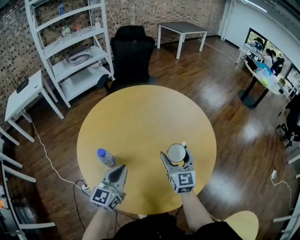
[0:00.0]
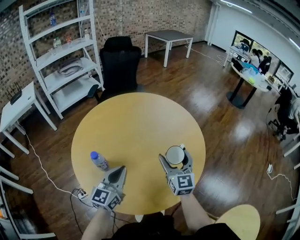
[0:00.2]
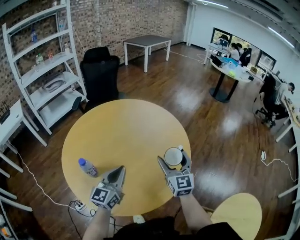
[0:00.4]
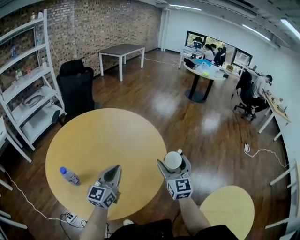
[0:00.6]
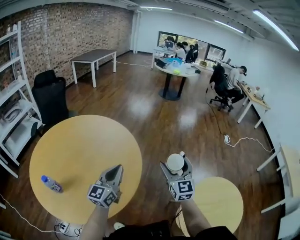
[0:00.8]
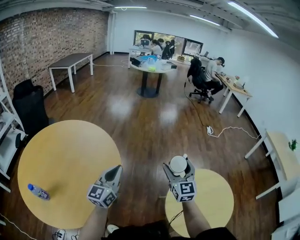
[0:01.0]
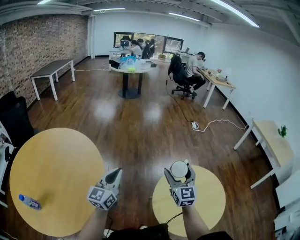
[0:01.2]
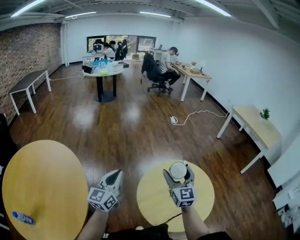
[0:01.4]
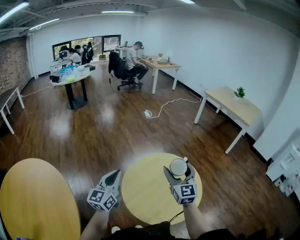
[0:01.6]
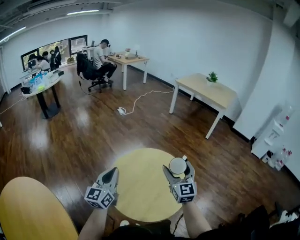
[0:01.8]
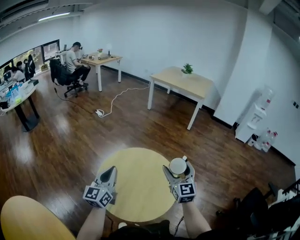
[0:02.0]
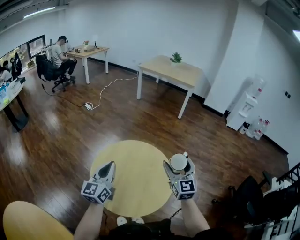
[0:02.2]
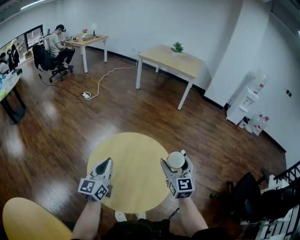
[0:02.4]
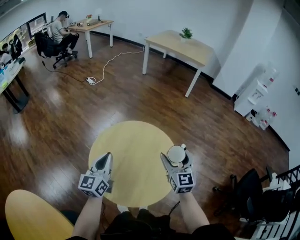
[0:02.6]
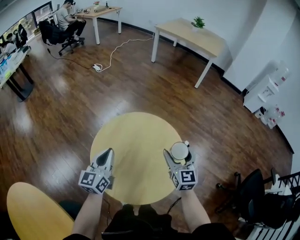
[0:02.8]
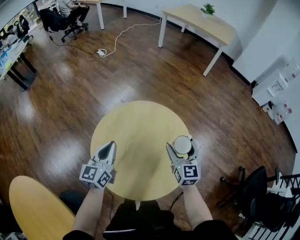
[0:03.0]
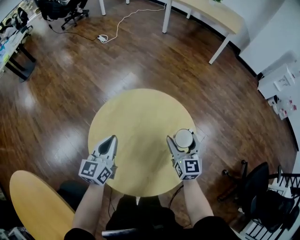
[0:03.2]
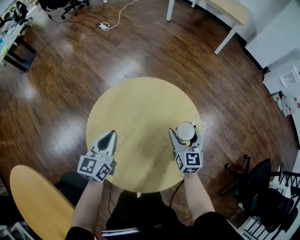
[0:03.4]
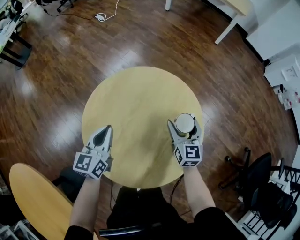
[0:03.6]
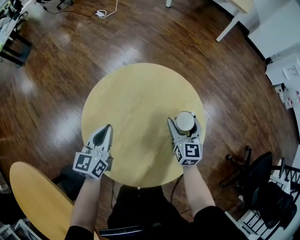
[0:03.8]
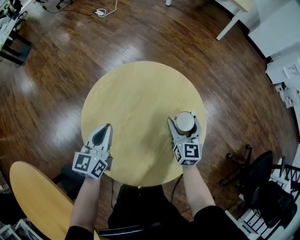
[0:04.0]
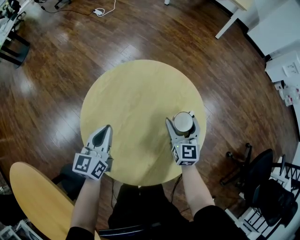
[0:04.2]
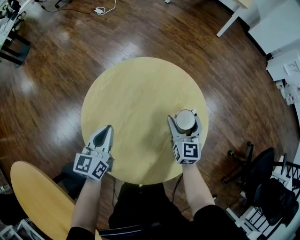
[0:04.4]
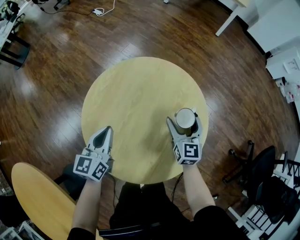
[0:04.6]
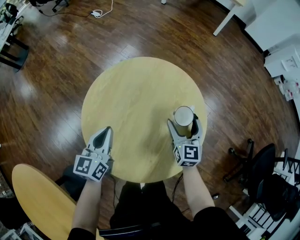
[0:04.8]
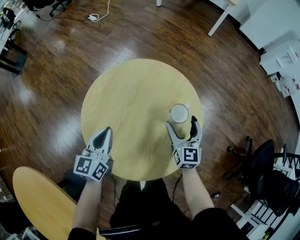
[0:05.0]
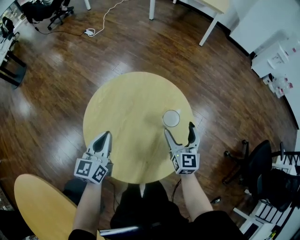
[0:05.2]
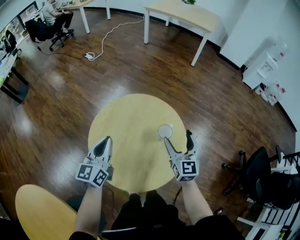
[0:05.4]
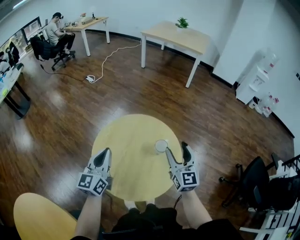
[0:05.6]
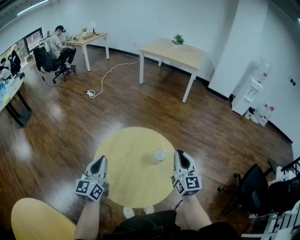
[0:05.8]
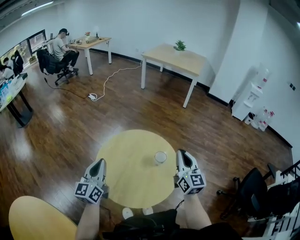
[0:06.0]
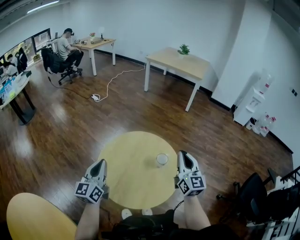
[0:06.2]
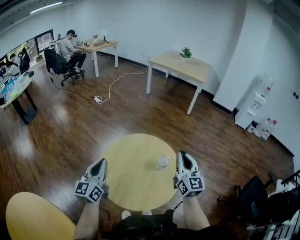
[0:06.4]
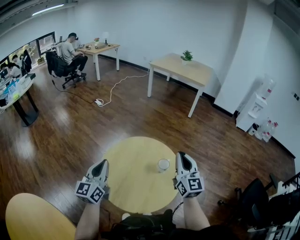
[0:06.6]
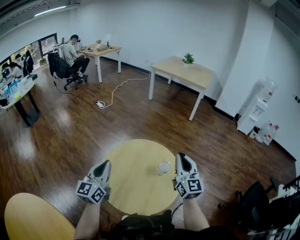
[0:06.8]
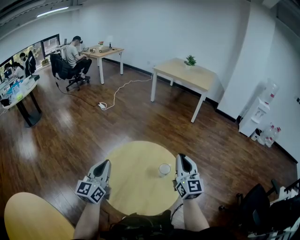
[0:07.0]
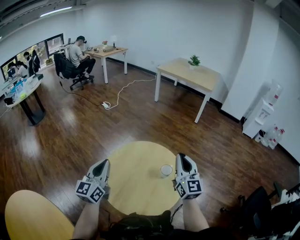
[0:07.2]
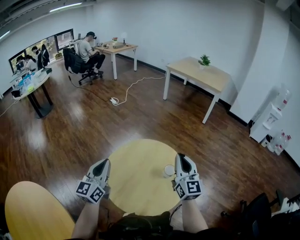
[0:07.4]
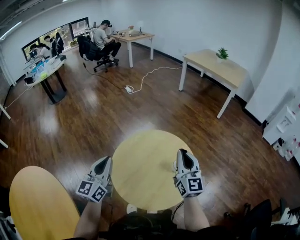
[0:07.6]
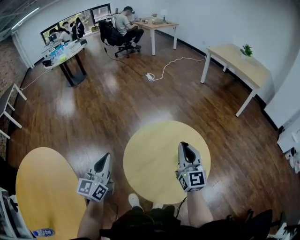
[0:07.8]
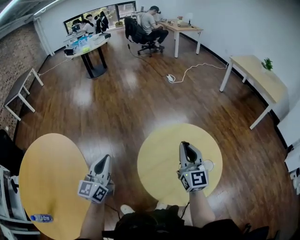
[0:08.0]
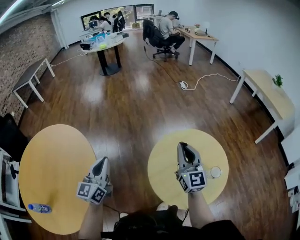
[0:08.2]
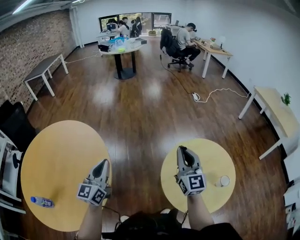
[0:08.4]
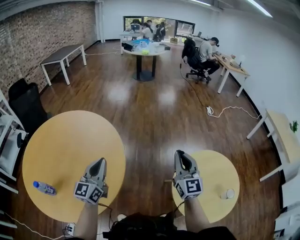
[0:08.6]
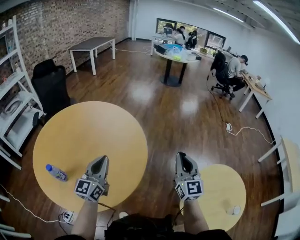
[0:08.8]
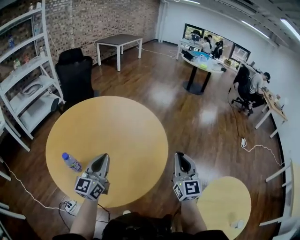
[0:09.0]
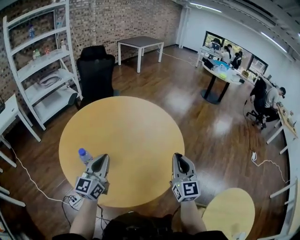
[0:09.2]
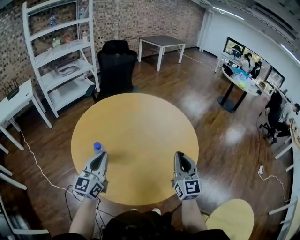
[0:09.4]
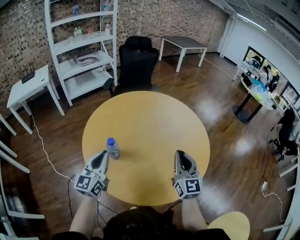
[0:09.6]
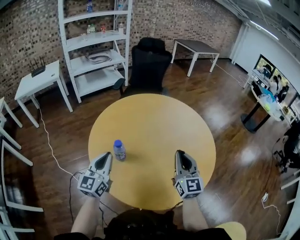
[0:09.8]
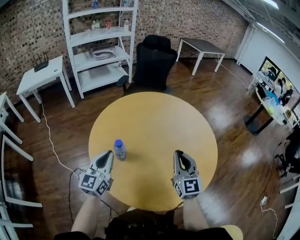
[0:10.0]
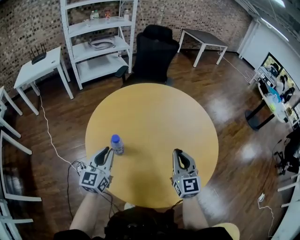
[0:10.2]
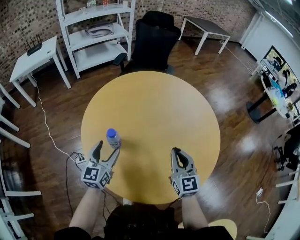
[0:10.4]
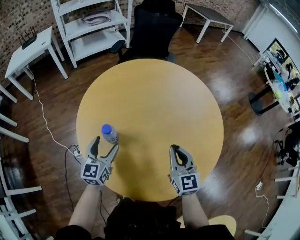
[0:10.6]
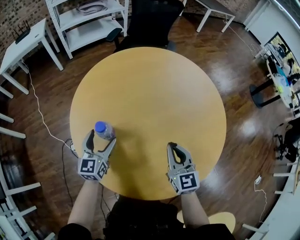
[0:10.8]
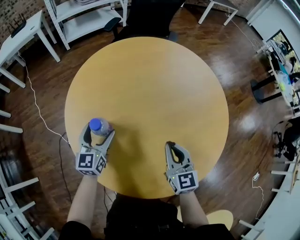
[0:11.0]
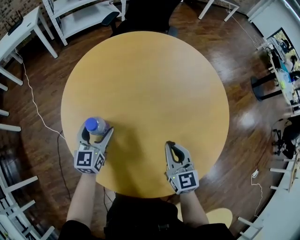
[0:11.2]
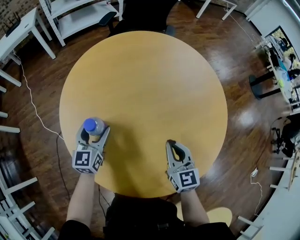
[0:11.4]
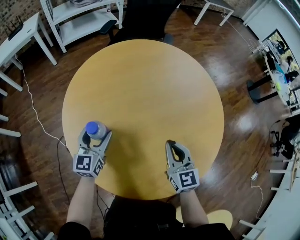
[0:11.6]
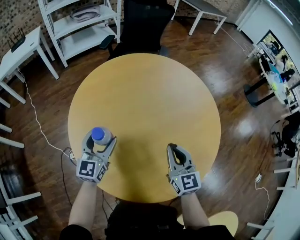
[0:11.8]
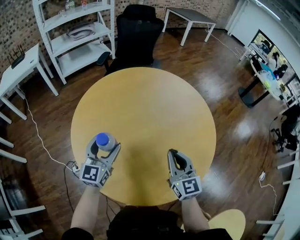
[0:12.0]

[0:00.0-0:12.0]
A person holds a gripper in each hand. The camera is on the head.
0:00.0 to 0:01.6: Both grippers are carried about 70 cm. The left gripper changes its angle by some 80 degrees. The right gripper turns by about 80 degrees.
0:01.6 to 0:03.0: The left gripper shifts by roughly 25 cm, and swivels about 30 degrees. The right gripper changes place by approximately 25 cm, and swivels roughly 30 degrees.
0:03.0 to 0:04.4: Both grippers travel together downward, about 10 cm.
0:04.4 to 0:06.0: The grippers both shift upward by approximately 25 cm. The left gripper turns by approximately 20 degrees. Meanwhile the right gripper turns by about 20 degrees, and closes.
0:06.0 to 0:07.6: The right gripper travels to the left by some 10 cm.
0:07.6 to 0:09.0: Both grippers are carried some 60 cm. The right gripper turns by approximately 70 degrees. Meanwhile the left gripper swivels about 70 degrees.
0:09.0 to 0:10.4: The right gripper shifts by roughly 30 cm, and changes its angle by about 40 degrees; the left gripper changes place by about 25 cm, rotates approximately 40 degrees, and opens its fingers.
0:10.4 to 0:12.0: The left gripper travels downward and back again, about 10 cm each way. The right gripper reaches roughly 10 cm downward, then returns.

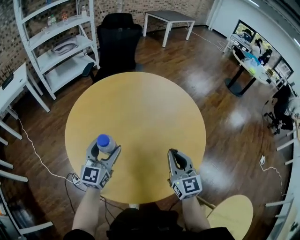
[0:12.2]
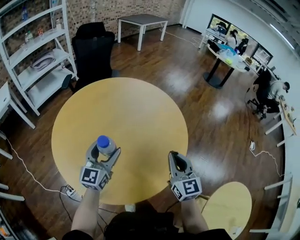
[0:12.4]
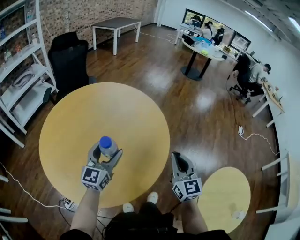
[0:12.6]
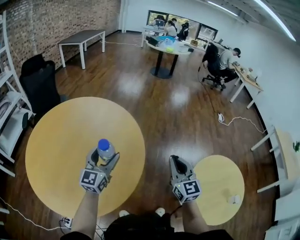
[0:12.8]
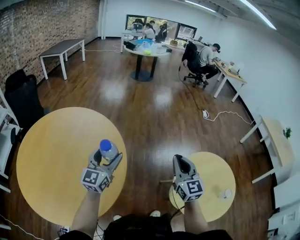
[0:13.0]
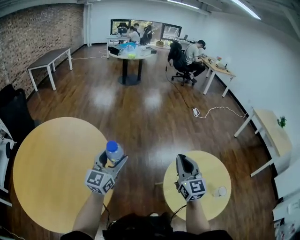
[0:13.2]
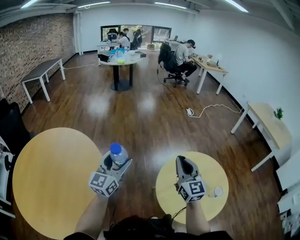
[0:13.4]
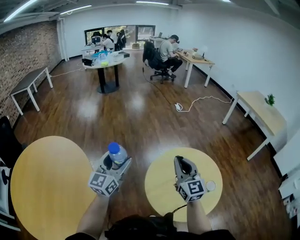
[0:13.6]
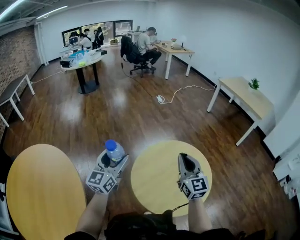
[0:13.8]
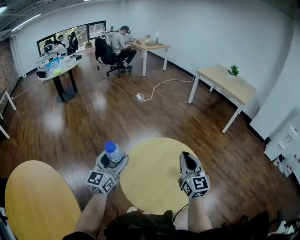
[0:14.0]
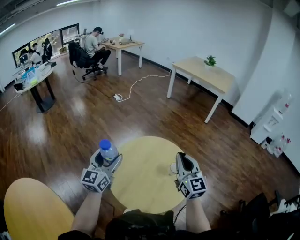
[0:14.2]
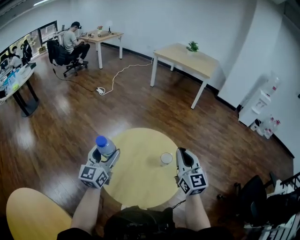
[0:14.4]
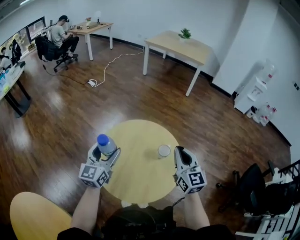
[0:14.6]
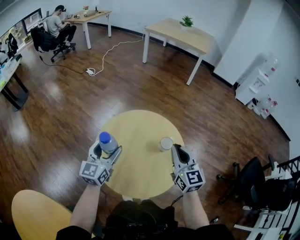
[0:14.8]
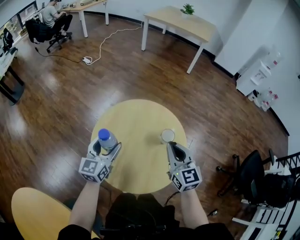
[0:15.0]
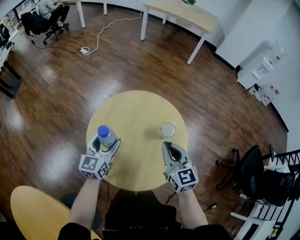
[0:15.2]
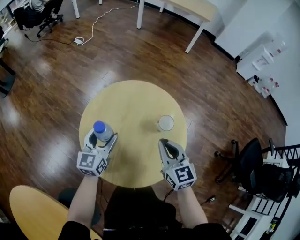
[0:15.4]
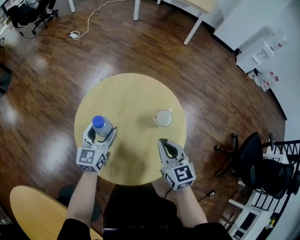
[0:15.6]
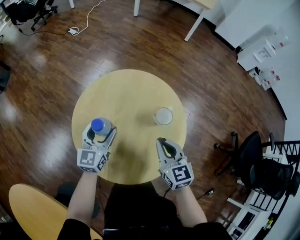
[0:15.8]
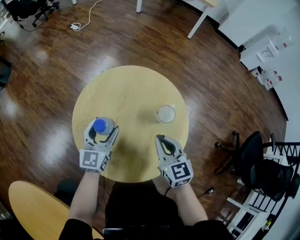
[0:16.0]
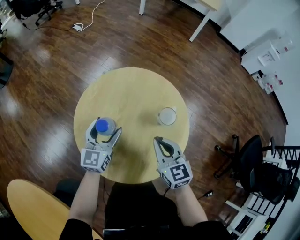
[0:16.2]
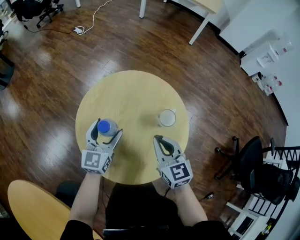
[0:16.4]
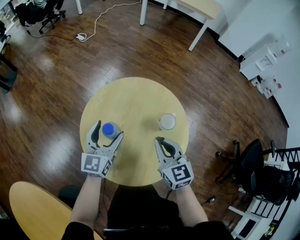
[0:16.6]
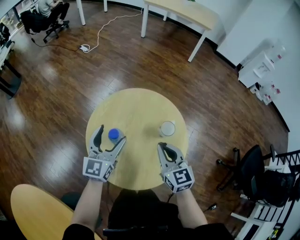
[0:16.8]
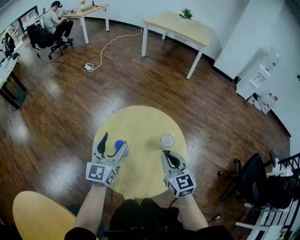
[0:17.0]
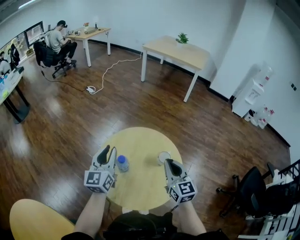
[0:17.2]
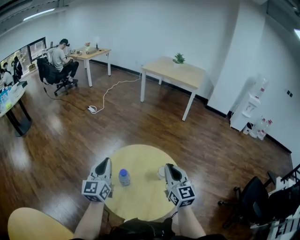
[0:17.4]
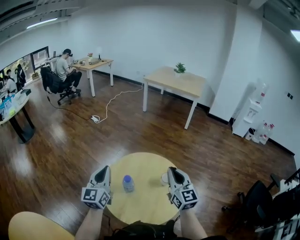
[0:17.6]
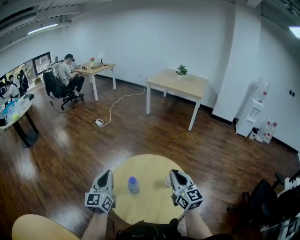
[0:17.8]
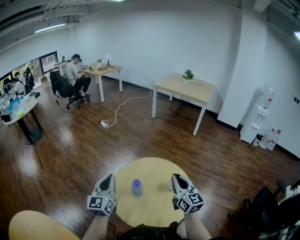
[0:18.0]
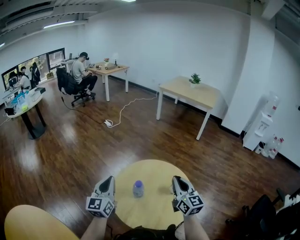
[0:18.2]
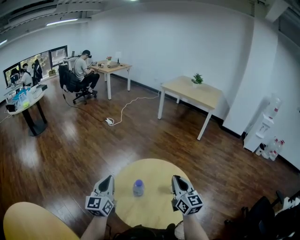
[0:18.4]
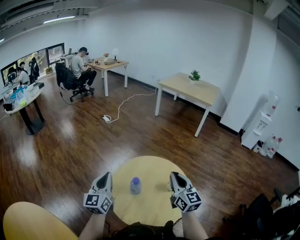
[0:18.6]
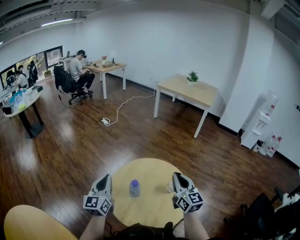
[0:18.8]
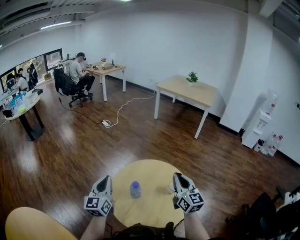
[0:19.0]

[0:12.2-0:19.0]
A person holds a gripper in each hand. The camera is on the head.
0:12.2 to 0:13.6: The two grippers travel together, about 60 cm. The right gripper rotates approximately 60 degrees; the left gripper changes its angle by some 70 degrees.
0:13.6 to 0:15.0: The right gripper changes place by roughly 25 cm, and changes its angle by approximately 50 degrees; the left gripper shifts by roughly 35 cm, and swivels approximately 50 degrees.
0:15.0 to 0:16.2: Both grippers move downward, some 10 cm.
0:16.2 to 0:17.6: The left gripper goes about 25 cm upward and to the left, turns by about 20 degrees, and closes its fingers. The right gripper heads upward, covering some 20 cm, and changes its angle by approximately 30 degrees.
0:17.6 to 0:19.0: The grippers make only small movements.

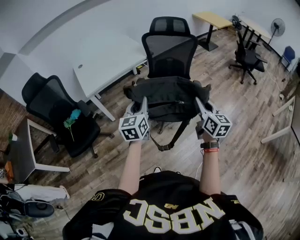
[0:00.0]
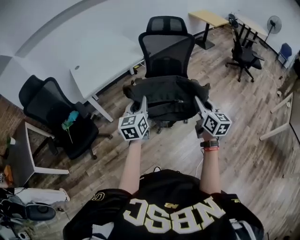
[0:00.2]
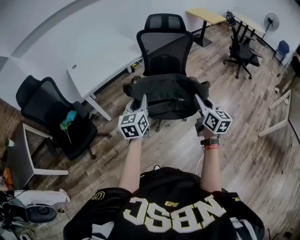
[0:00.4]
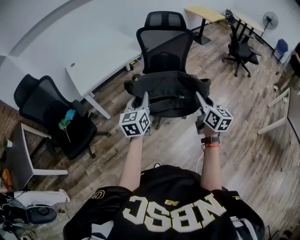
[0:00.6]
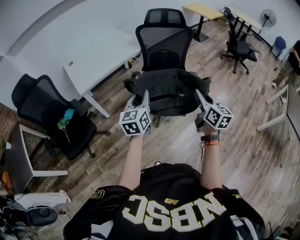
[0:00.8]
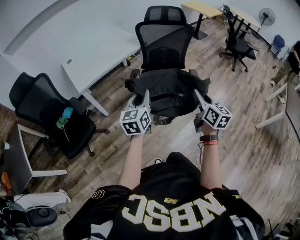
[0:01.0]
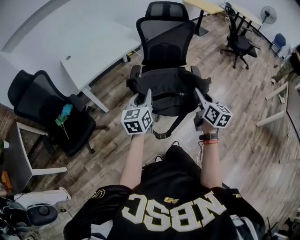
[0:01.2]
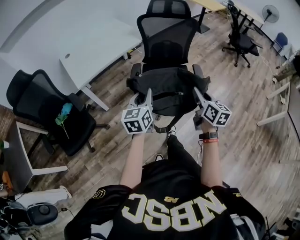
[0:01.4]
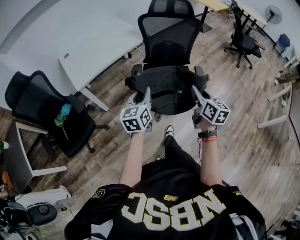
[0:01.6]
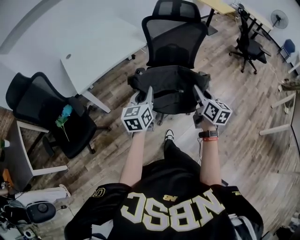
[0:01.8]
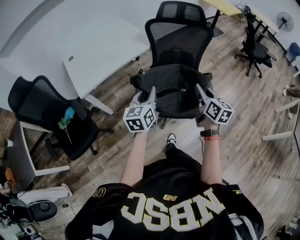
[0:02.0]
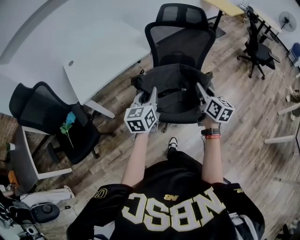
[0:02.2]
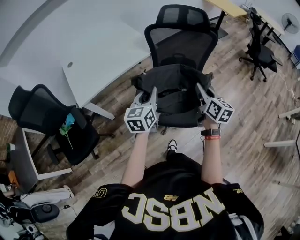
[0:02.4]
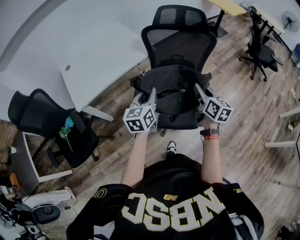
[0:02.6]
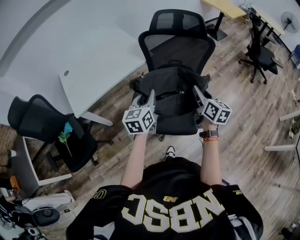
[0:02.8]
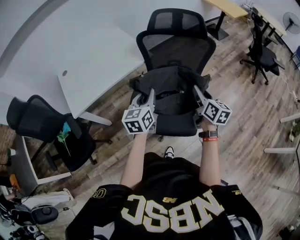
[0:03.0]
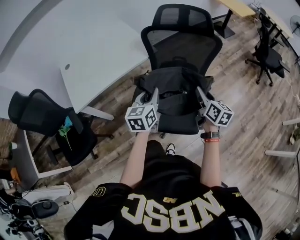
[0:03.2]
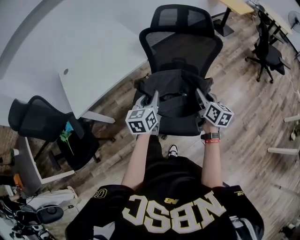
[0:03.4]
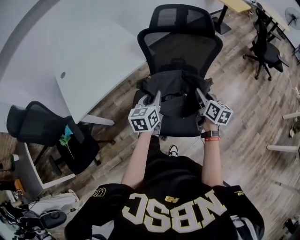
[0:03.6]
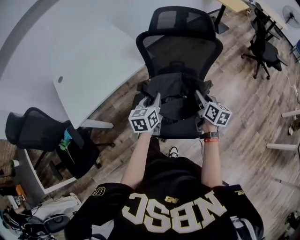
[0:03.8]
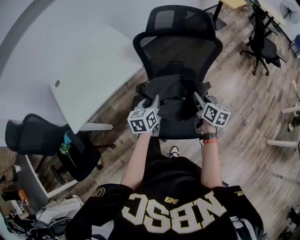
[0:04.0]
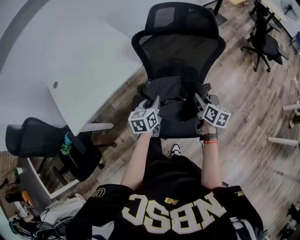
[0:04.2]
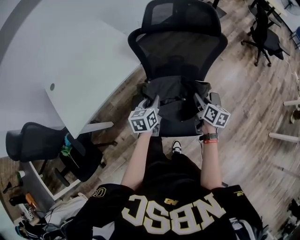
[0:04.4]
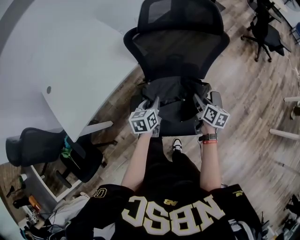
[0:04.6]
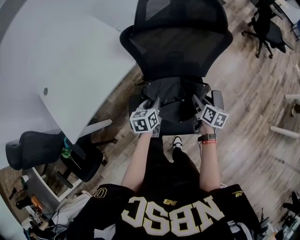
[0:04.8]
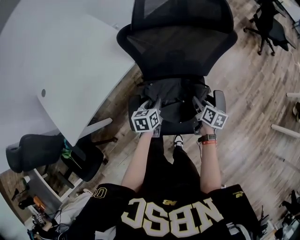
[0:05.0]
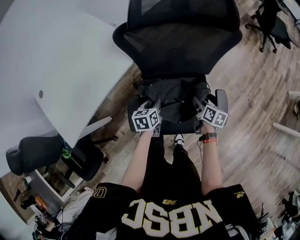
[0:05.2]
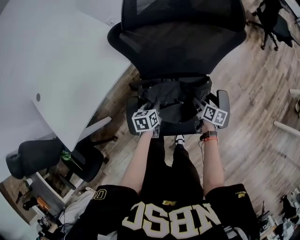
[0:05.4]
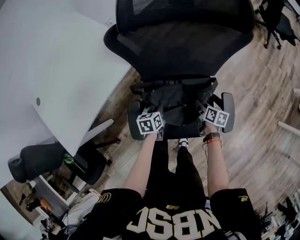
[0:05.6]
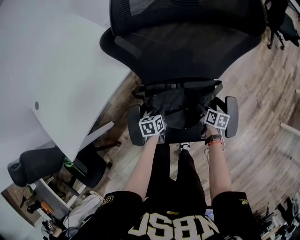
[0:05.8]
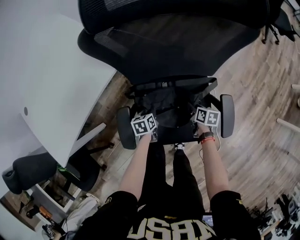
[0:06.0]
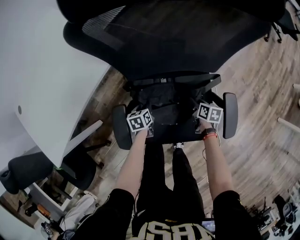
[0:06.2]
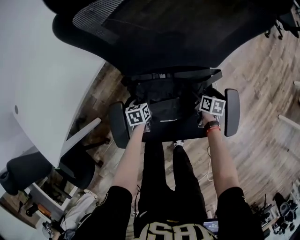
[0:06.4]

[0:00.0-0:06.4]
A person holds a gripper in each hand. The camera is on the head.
0:00.0 to 0:01.6: The left gripper shifts some 10 cm downward and forward; the right gripper is displaced forward, to the left and downward by about 10 cm.
0:01.6 to 0:03.2: Both grippers travel together forward, roughly 30 cm.
0:03.2 to 0:04.8: The two grippers go roughly 20 cm downward and forward. The right gripper turns by some 30 degrees. The left gripper changes its angle by approximately 30 degrees.
0:04.8 to 0:06.4: The grippers both shift downward by approximately 30 cm. The right gripper swivels about 20 degrees; the left gripper turns by approximately 20 degrees.
